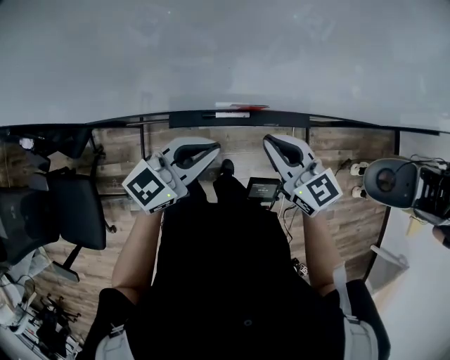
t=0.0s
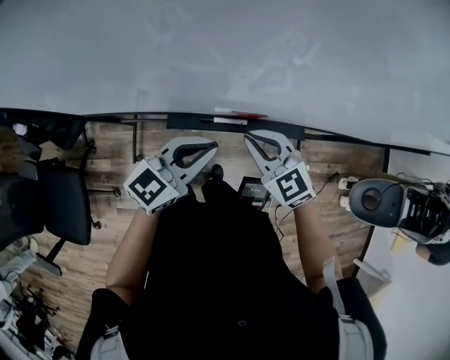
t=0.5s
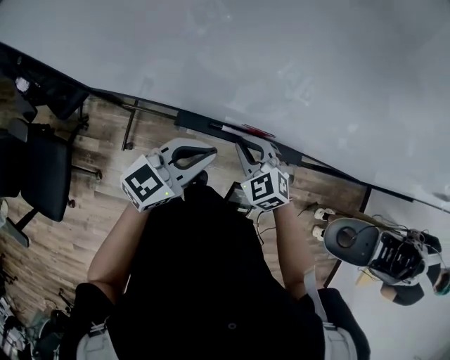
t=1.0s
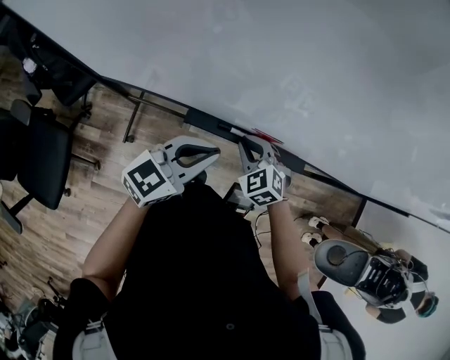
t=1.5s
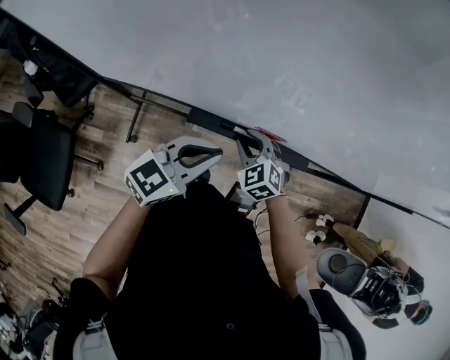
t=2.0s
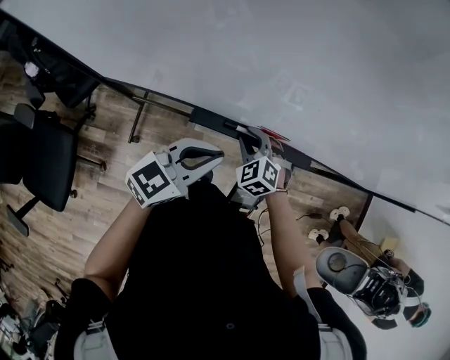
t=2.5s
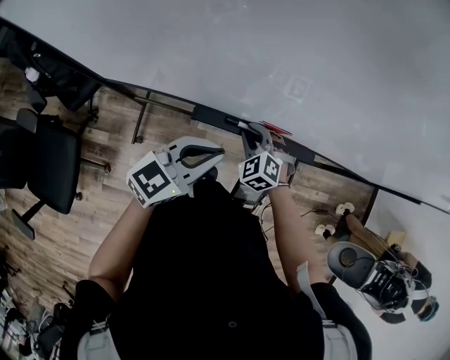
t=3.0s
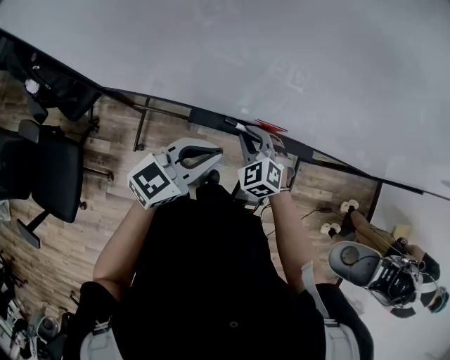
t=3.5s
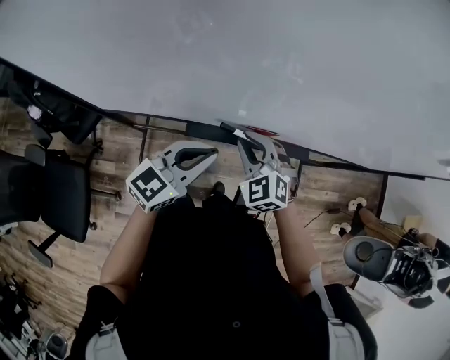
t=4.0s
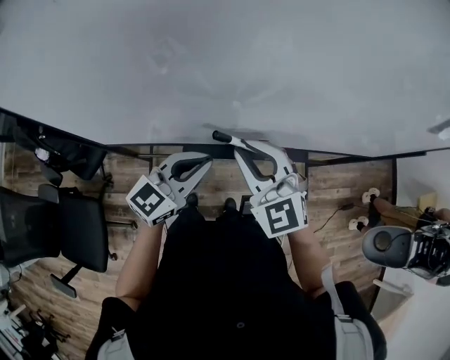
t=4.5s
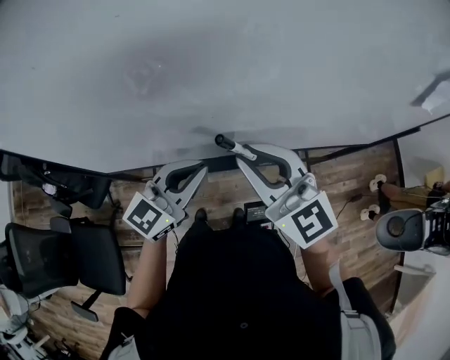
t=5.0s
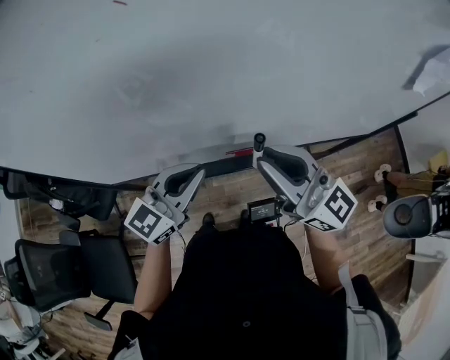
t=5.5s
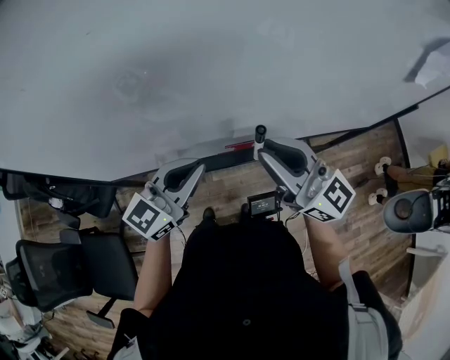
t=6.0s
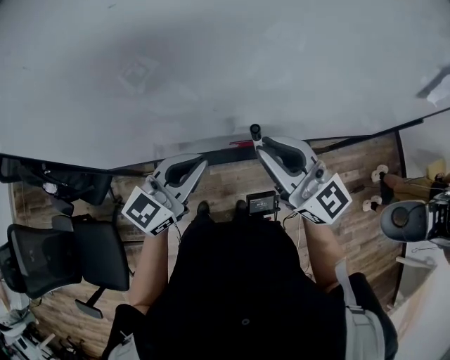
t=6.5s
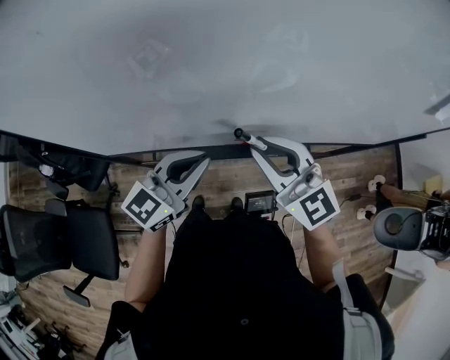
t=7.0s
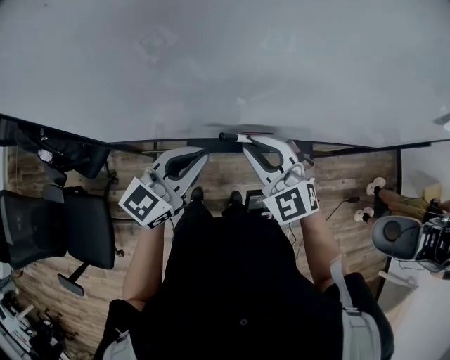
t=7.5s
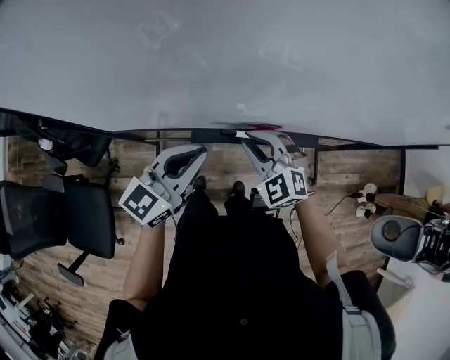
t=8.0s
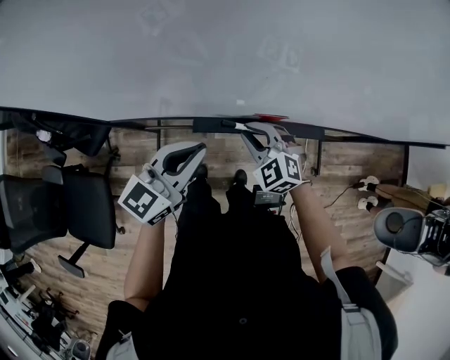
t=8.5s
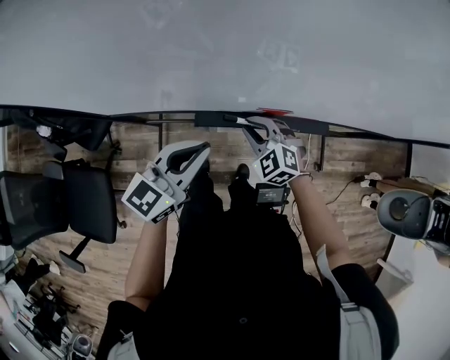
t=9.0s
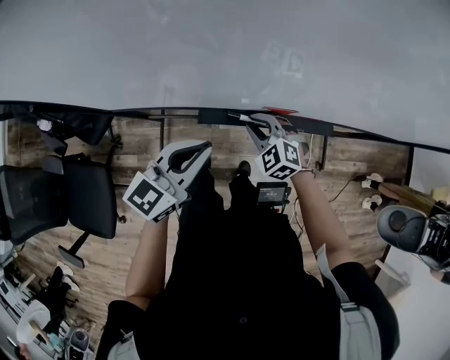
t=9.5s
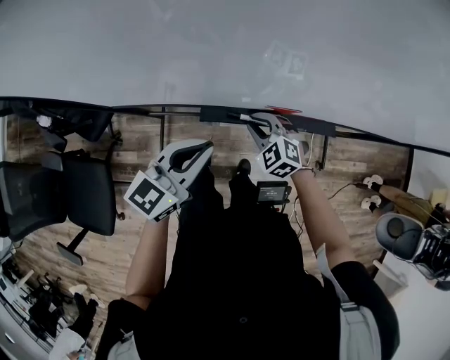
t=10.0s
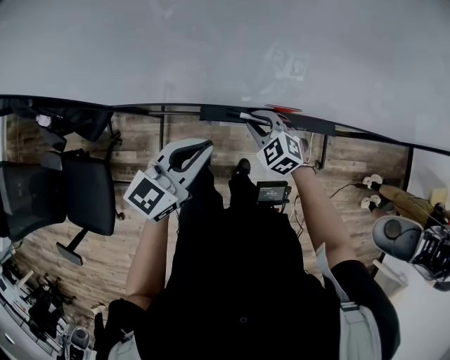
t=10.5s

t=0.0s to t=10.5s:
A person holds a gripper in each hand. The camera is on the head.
t=0.0s to t=2.0s: The right gripper goes some 30 cm downward, forward and to the left, points its fingers about 30 degrees further downward, and opens up. The left gripper travels forward, downward and to the left by approximately 15 cm.
t=2.0s to t=4.0s: The right gripper heads upward, covering some 10 cm.
t=4.0s to t=6.5s: The left gripper goes some 10 cm upward. Meanwhile the right gripper goes approximately 20 cm upward, and tilts its fingers about 40 degrees upward.
t=6.5s to t=8.5s: The right gripper shifts about 25 cm downward, and angles its fingers downward, by some 40 degrees; the left gripper is displaced downward by roughly 5 cm.
t=8.5s to t=10.5s: The right gripper is displaced downward by approximately 10 cm.

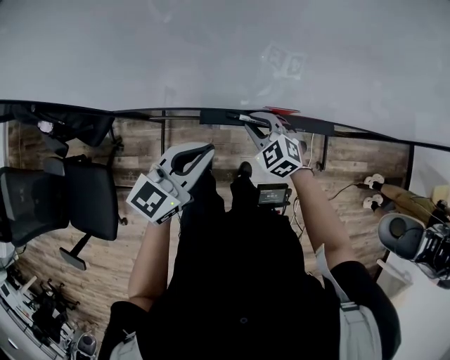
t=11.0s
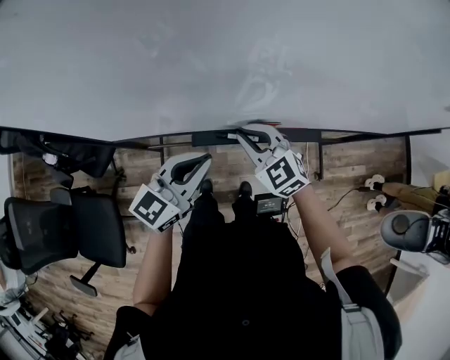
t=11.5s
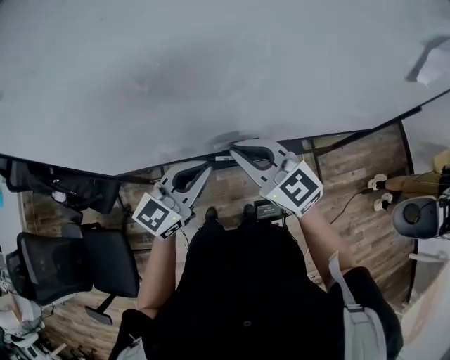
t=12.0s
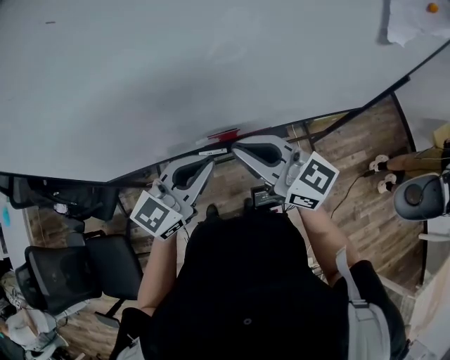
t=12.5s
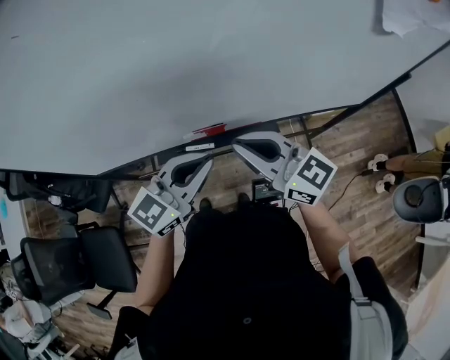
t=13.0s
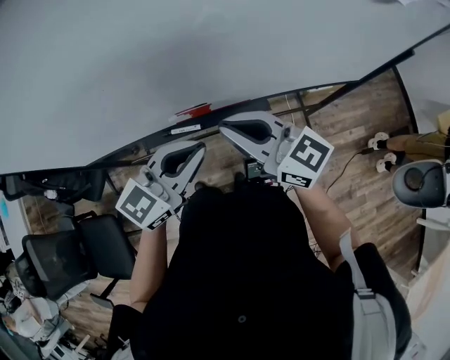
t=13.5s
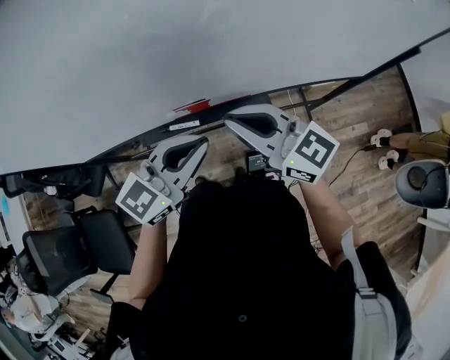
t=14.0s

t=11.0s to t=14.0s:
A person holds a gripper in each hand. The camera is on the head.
t=11.0s to t=12.5s: The left gripper shifts roughly 15 cm to the right and upward; the right gripper is displaced upward by some 30 cm, and points its fingers about 50 degrees further upward.
t=12.5s to t=14.0s: The left gripper moves to the right, approximately 10 cm; the right gripper shifts roughly 10 cm to the right and downward.

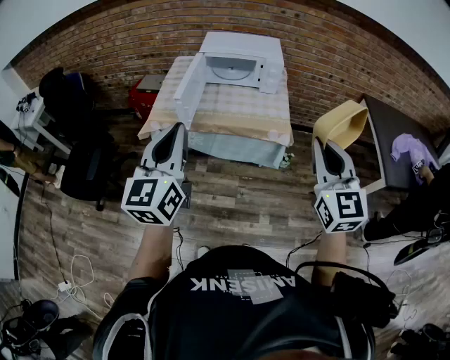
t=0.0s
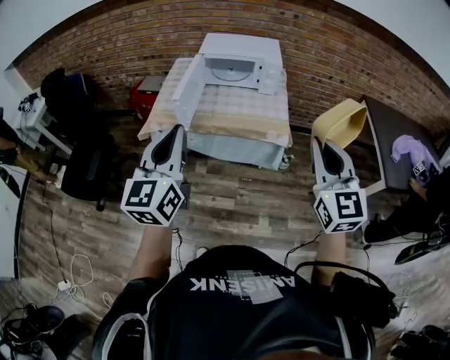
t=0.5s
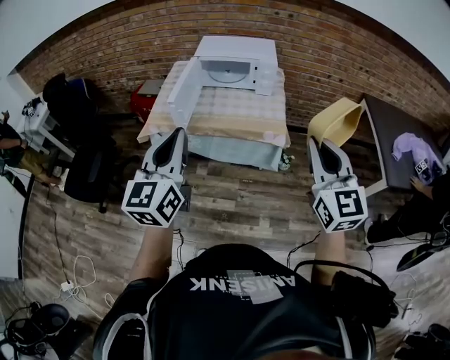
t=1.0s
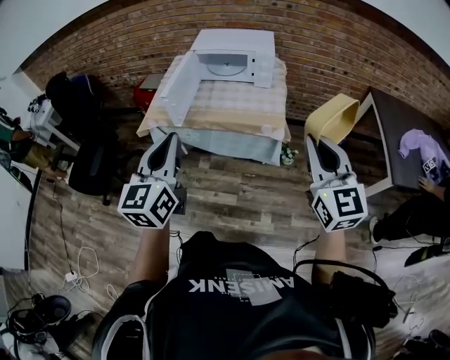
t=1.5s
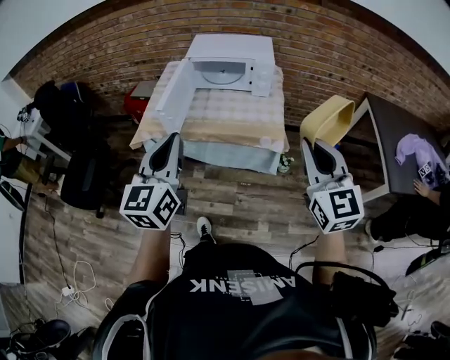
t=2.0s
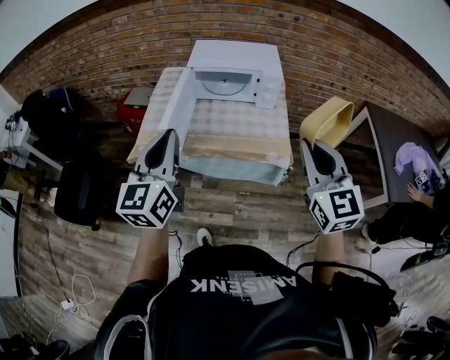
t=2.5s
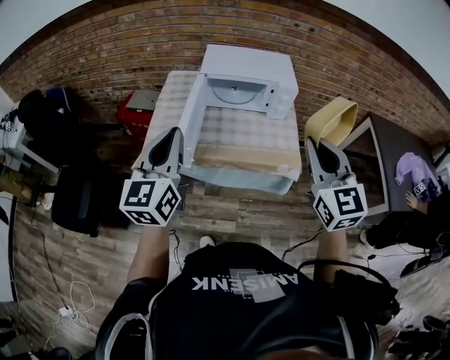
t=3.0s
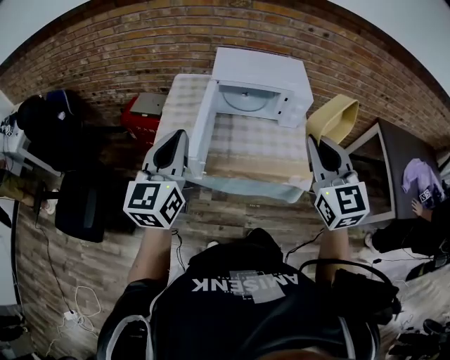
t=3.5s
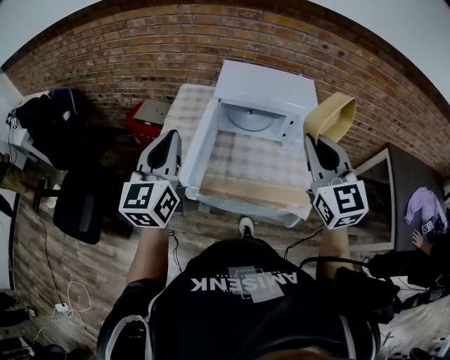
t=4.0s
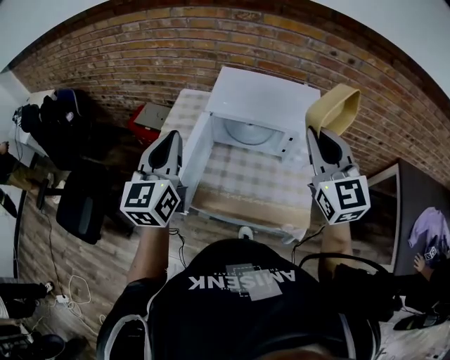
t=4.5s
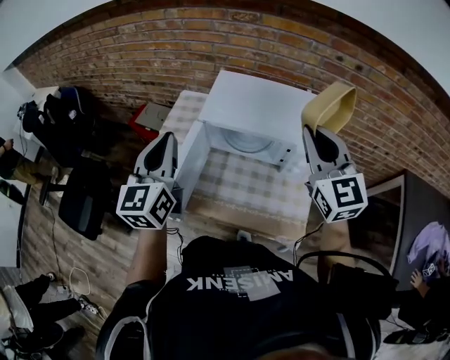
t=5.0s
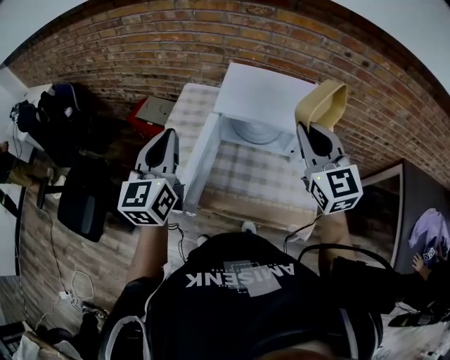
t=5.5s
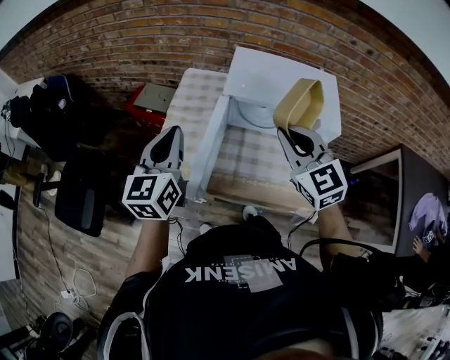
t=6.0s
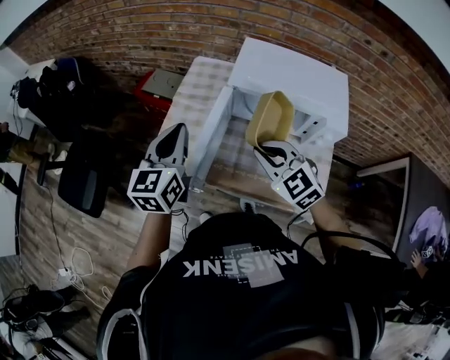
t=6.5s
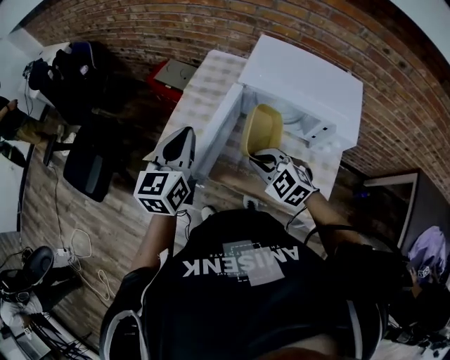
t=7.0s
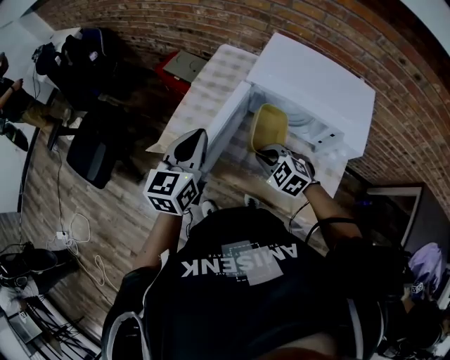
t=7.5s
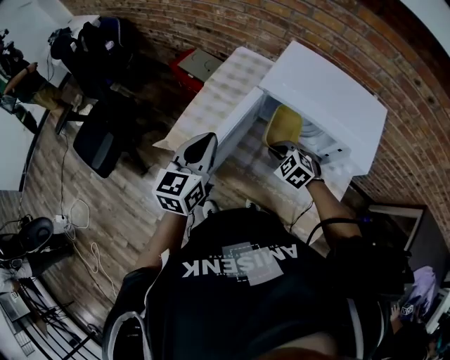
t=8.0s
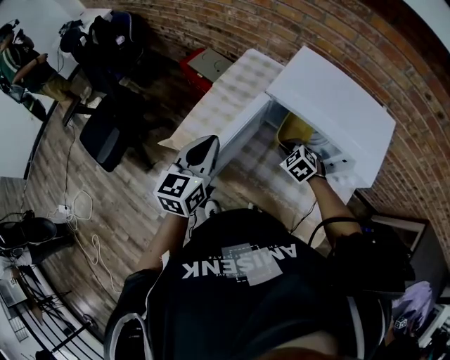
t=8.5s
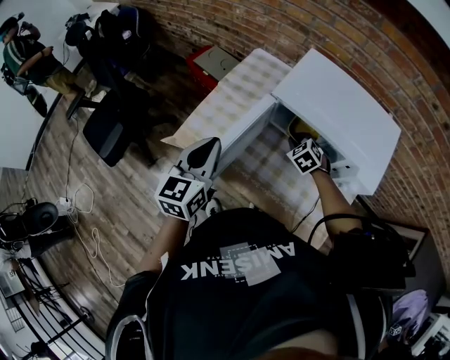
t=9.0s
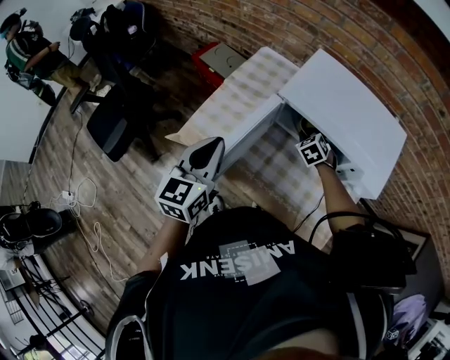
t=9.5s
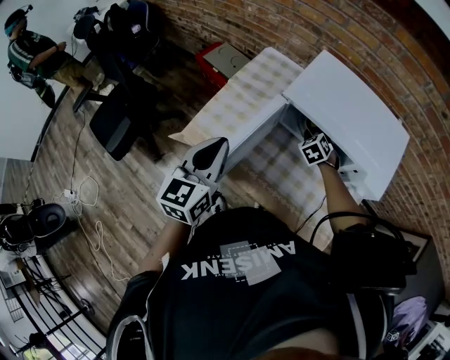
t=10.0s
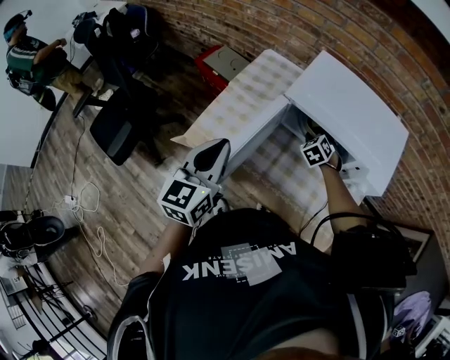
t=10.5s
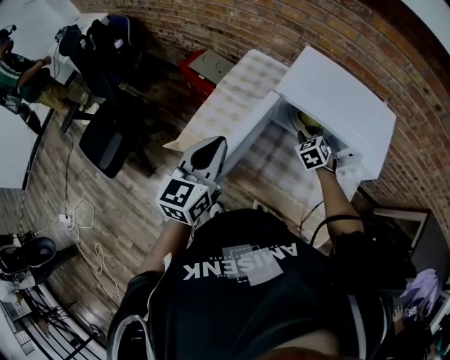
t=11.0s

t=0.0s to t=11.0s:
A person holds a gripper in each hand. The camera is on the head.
t=0.0s to t=2.0s: The left gripper shifts roughly 10 cm to the right and forward. Meanwhile the right gripper is displaced forward by roughly 5 cm.
t=2.0s to t=3.5s: Both grippers move forward and to the left, some 30 cm.
t=3.5s to t=5.5s: The grippers both shift forward by some 25 cm.
t=5.5s to t=7.5s: The right gripper moves downward and to the left, roughly 35 cm, and points its fingers approximately 40 degrees further downward. Meanwhile the left gripper goes approximately 10 cm downward.
t=7.5s to t=9.0s: The right gripper goes approximately 20 cm forward, to the right and downward.
t=9.0s to t=11.0s: The grippers move only a little.

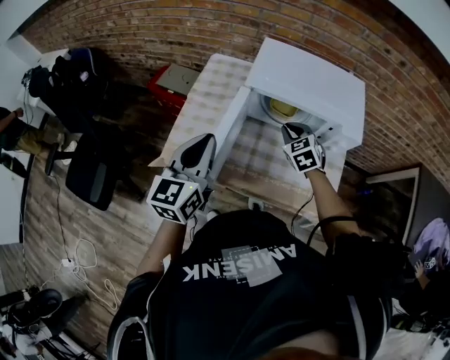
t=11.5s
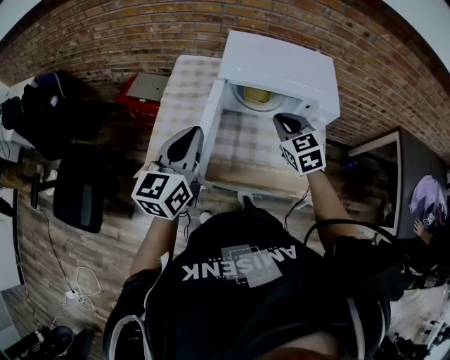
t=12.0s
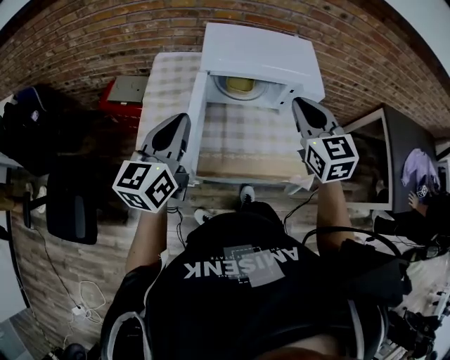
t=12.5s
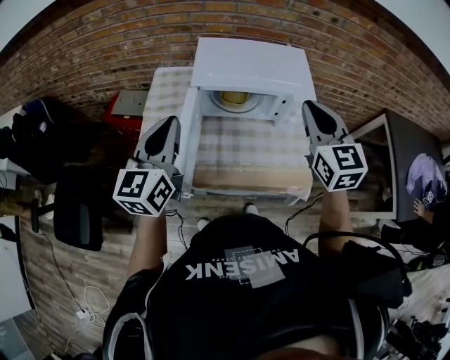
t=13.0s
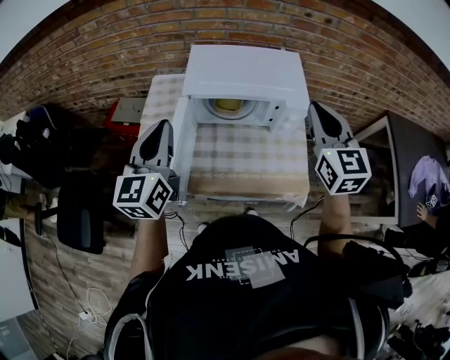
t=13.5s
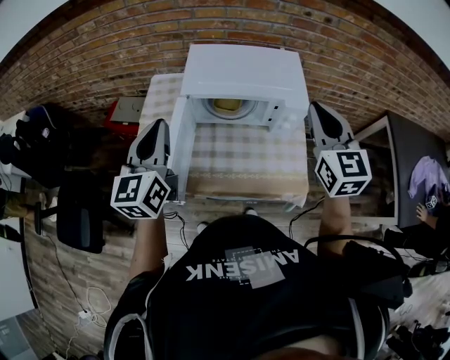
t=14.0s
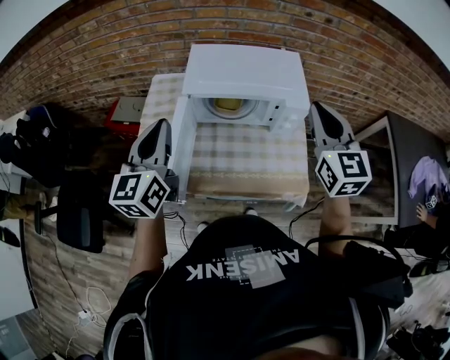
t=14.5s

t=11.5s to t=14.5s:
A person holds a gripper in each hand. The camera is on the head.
t=11.5s to t=13.0s: The left gripper moves upward, approximately 5 cm, while the right gripper moves upward, to the right and backward, some 30 cm, and tips its fingers upward by roughly 30 degrees.
t=13.0s to t=14.5s: The right gripper shifts some 5 cm to the right.
